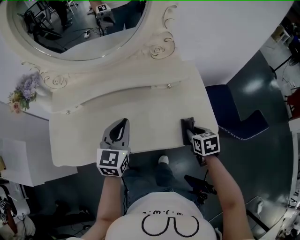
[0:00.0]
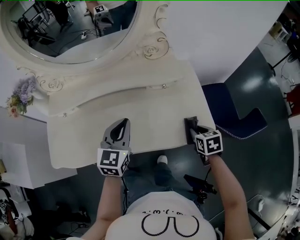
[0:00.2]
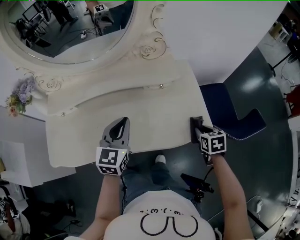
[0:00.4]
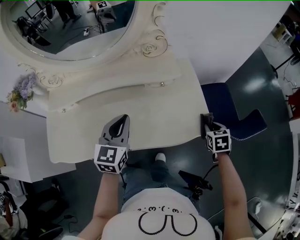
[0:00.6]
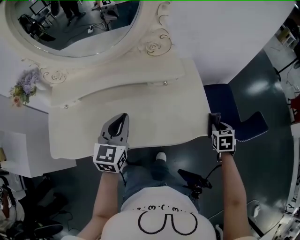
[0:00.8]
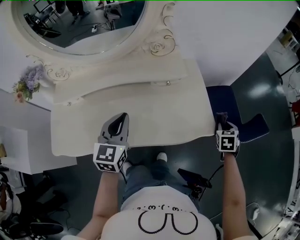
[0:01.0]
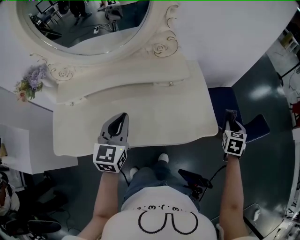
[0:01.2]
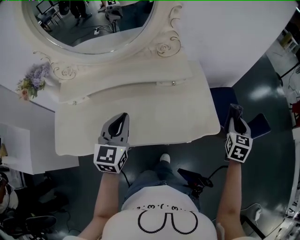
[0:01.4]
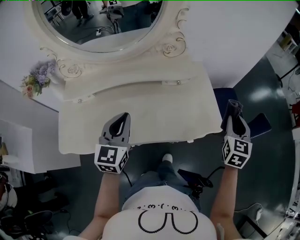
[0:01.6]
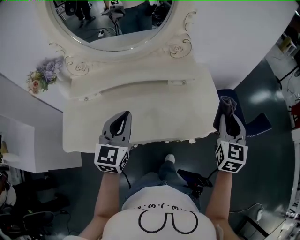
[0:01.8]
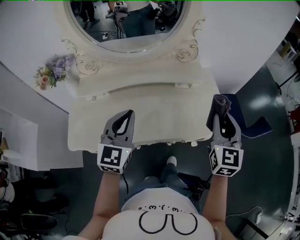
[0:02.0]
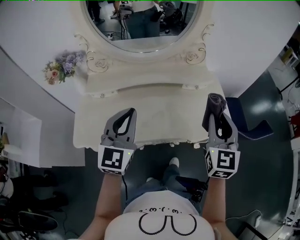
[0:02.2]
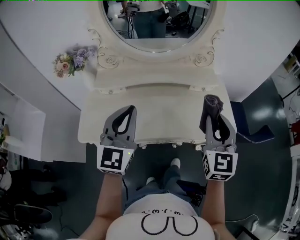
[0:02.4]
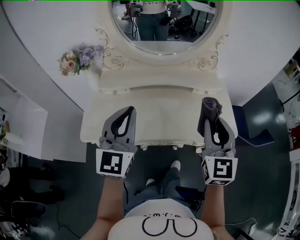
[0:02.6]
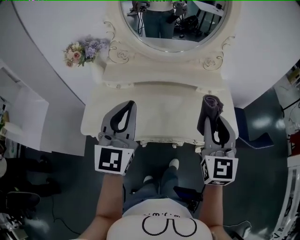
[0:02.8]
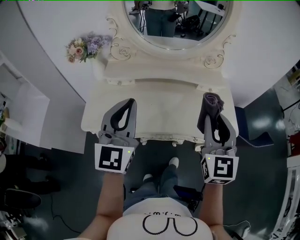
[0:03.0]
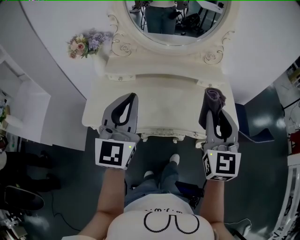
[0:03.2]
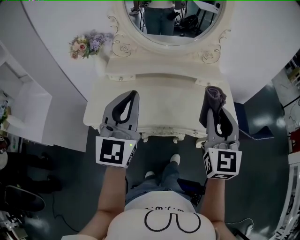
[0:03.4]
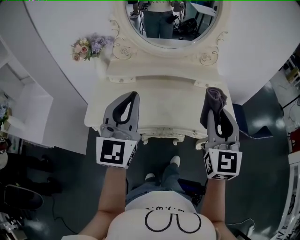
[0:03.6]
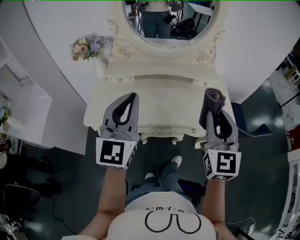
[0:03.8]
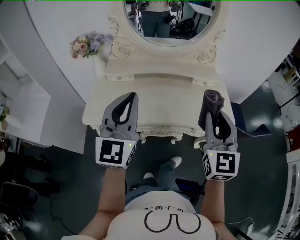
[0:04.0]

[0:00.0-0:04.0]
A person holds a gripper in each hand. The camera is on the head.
0:00.0 to 0:01.4: The right gripper heads to the right and upward, covering roughly 20 cm, and turns by some 40 degrees.
0:01.4 to 0:02.6: The left gripper moves to the left, upward and backward, approximately 25 cm. The right gripper moves to the left, upward and backward, approximately 40 cm, and changes its angle by about 40 degrees.
0:02.6 to 0:04.0: The two grippers go about 10 cm backward.

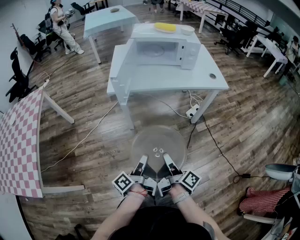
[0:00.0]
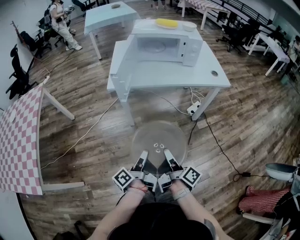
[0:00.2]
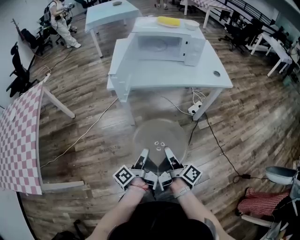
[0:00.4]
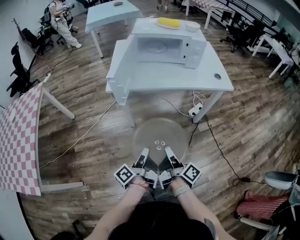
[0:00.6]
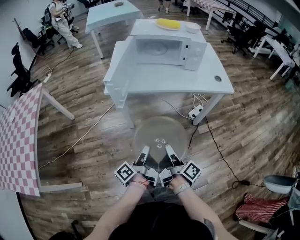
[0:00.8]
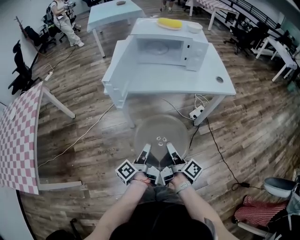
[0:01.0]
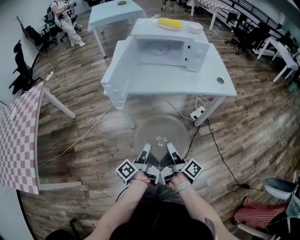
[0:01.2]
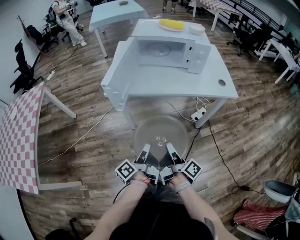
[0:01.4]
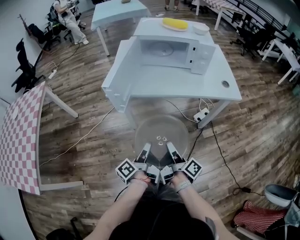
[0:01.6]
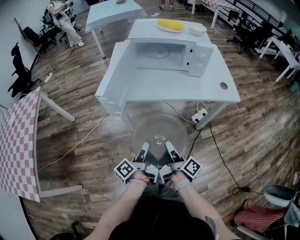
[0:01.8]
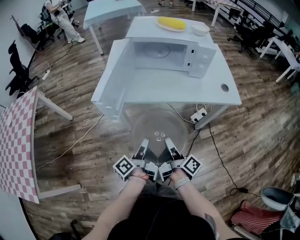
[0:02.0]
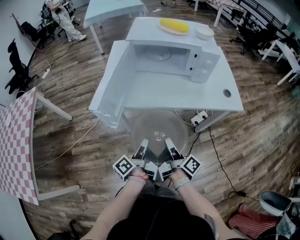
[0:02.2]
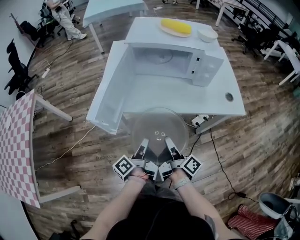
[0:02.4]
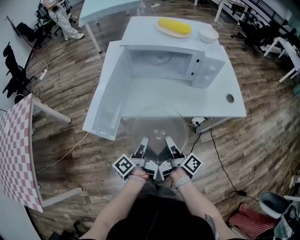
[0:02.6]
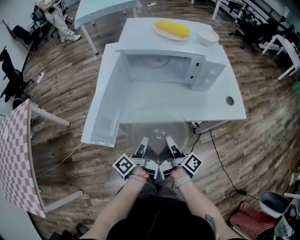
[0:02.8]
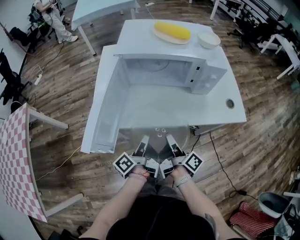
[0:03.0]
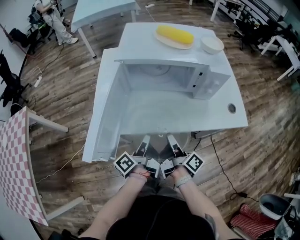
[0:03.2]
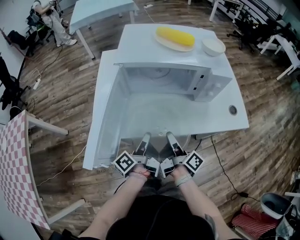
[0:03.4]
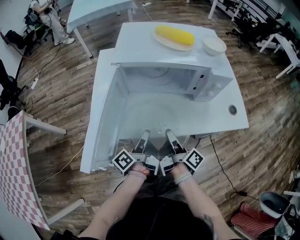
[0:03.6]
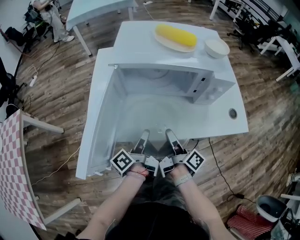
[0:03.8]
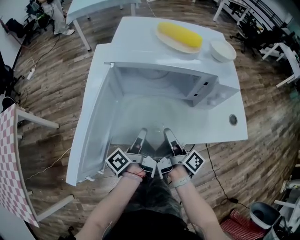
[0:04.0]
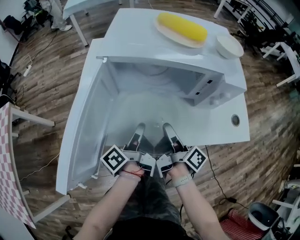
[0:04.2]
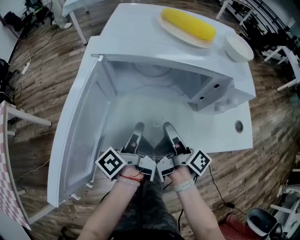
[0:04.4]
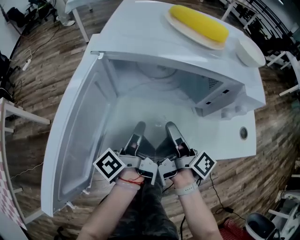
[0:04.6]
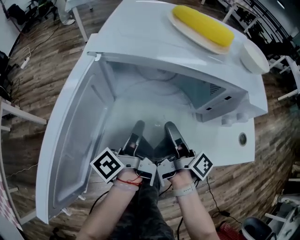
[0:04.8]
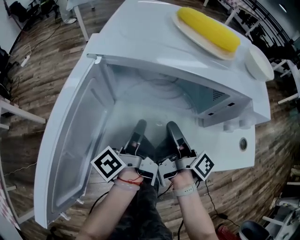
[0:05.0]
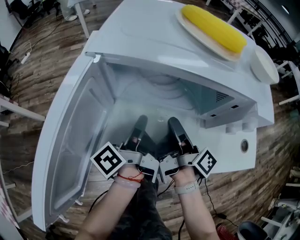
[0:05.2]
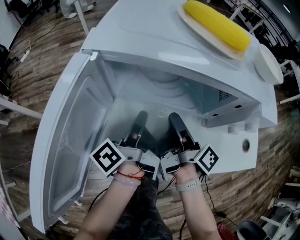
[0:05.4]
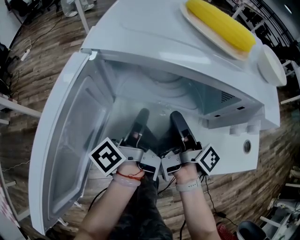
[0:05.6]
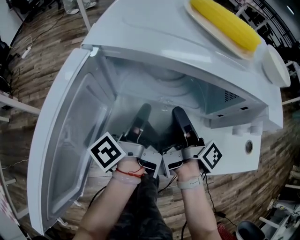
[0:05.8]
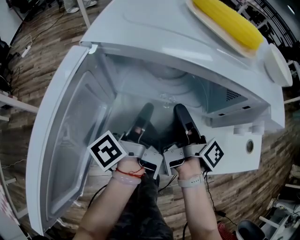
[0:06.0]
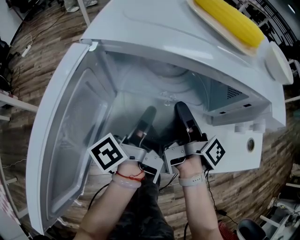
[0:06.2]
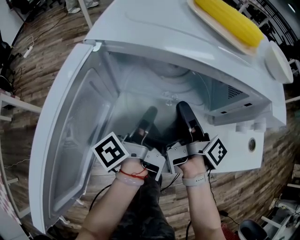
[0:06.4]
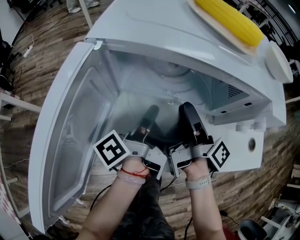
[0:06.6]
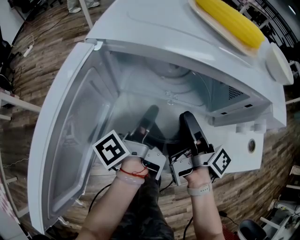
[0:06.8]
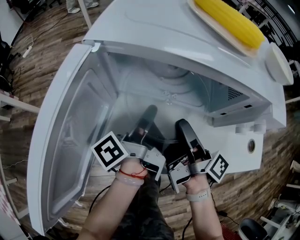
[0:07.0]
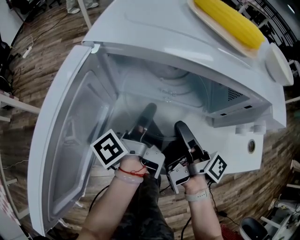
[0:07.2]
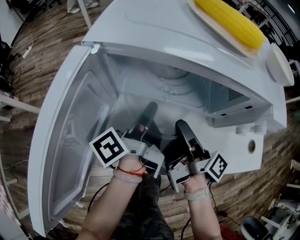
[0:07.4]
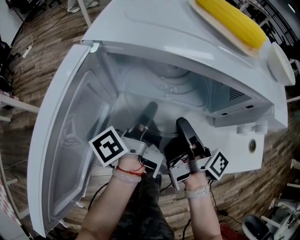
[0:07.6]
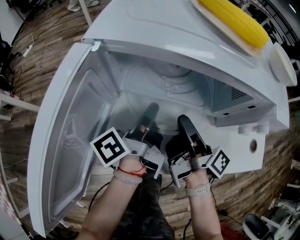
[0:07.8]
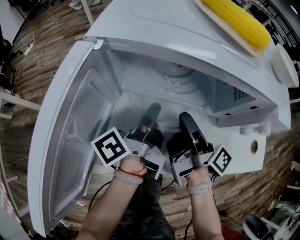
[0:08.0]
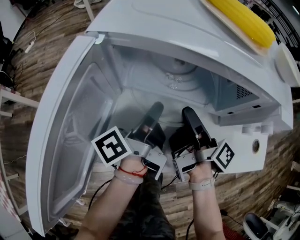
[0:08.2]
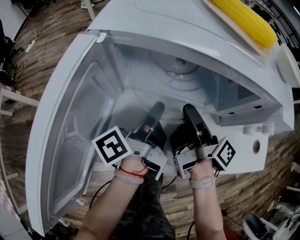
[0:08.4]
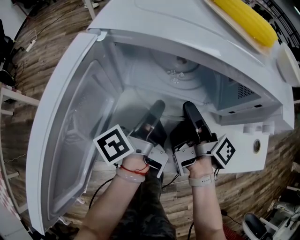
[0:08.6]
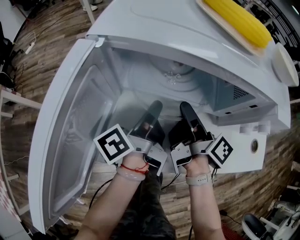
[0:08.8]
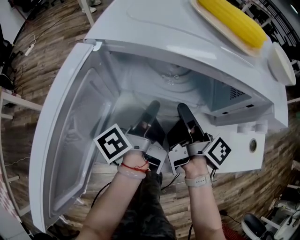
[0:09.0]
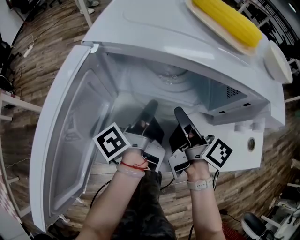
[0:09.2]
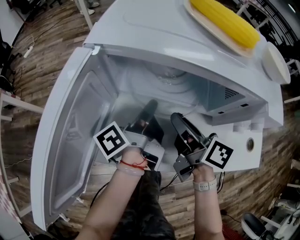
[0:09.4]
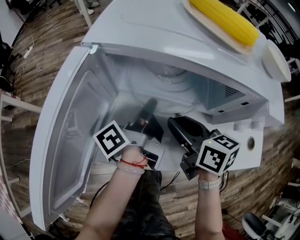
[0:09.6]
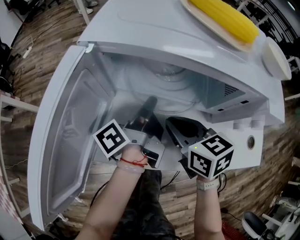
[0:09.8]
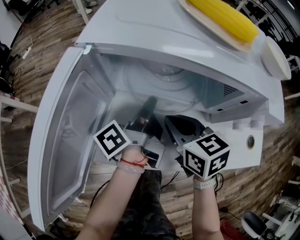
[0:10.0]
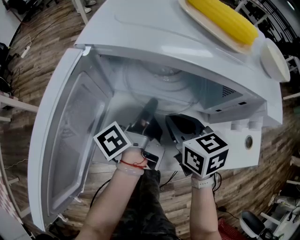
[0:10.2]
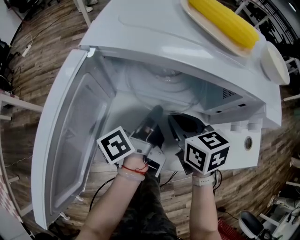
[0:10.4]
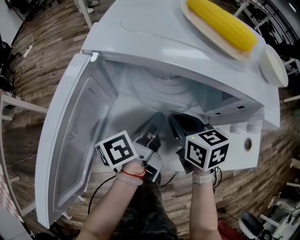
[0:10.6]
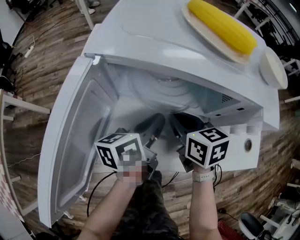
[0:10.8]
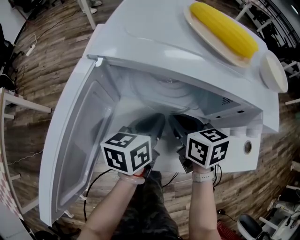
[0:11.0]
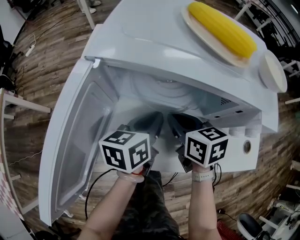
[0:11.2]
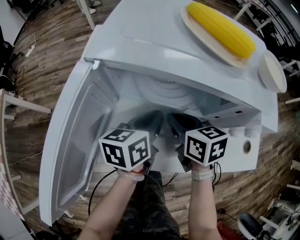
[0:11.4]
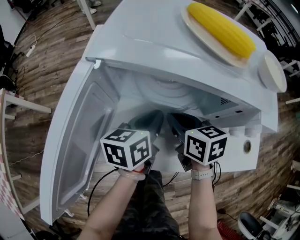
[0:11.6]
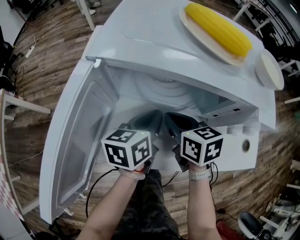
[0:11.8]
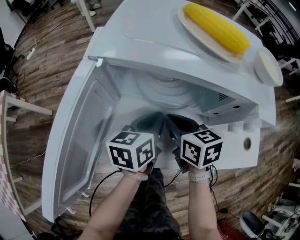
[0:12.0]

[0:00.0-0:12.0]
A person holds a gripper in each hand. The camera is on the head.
0:00.0 to 0:01.6: The right gripper moves roughly 15 cm.
0:01.6 to 0:03.0: The right gripper ends up approximately 25 cm from where it was.
0:03.0 to 0:04.4: The right gripper ends up about 15 cm from where it was.
0:04.4 to 0:06.0: The right gripper shifts by roughly 10 cm.
0:09.0 to 0:10.4: The right gripper rolls counterclockwise, seen from behind, by about 60 degrees.

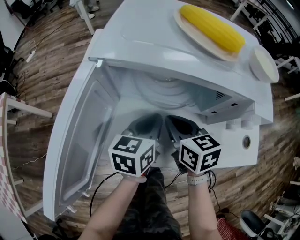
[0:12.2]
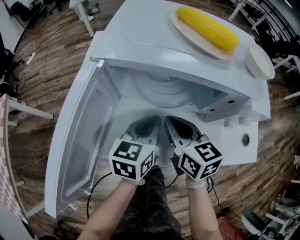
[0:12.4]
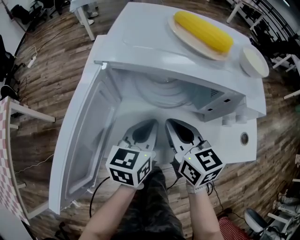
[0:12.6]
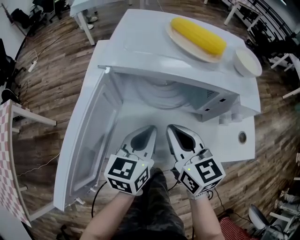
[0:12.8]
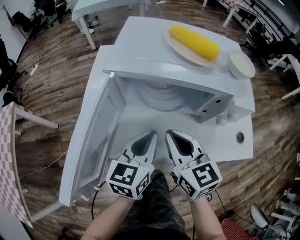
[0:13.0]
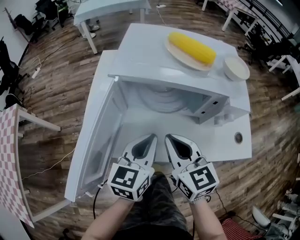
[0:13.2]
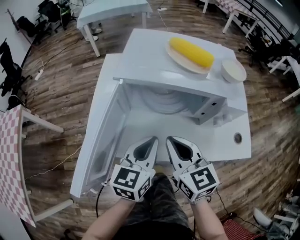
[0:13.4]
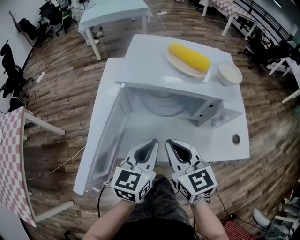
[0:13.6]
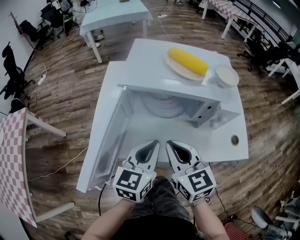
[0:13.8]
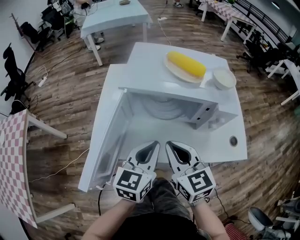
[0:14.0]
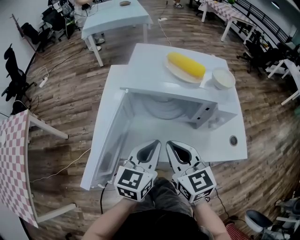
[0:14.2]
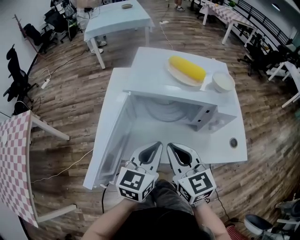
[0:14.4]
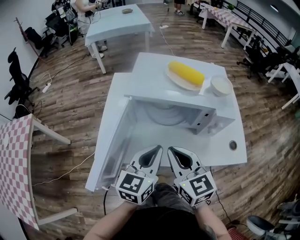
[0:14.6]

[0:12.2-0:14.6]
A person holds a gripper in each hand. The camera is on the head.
0:12.2 to 0:13.4: The right gripper shifts some 15 cm upward.
0:13.4 to 0:14.6: The right gripper moves about 5 cm.

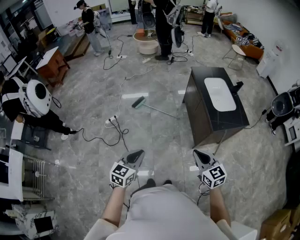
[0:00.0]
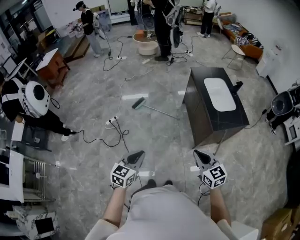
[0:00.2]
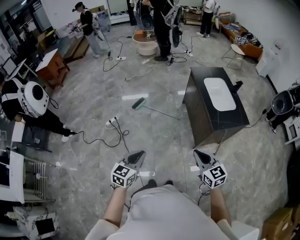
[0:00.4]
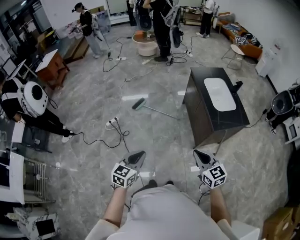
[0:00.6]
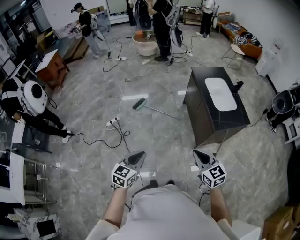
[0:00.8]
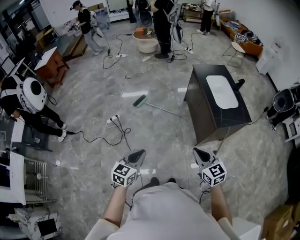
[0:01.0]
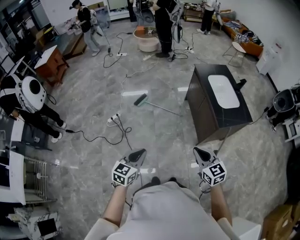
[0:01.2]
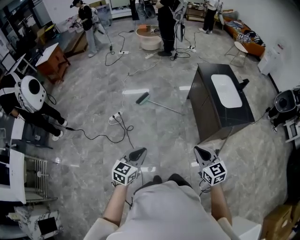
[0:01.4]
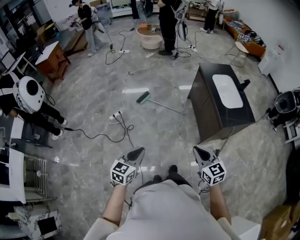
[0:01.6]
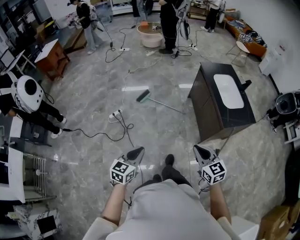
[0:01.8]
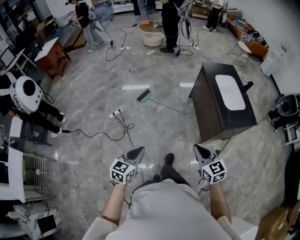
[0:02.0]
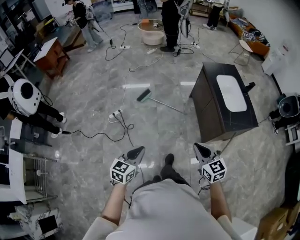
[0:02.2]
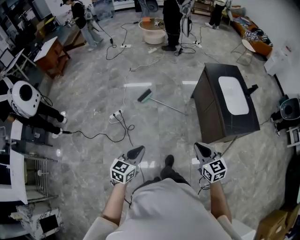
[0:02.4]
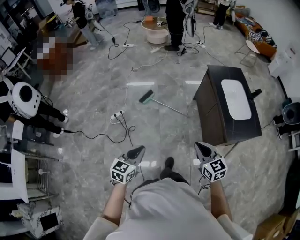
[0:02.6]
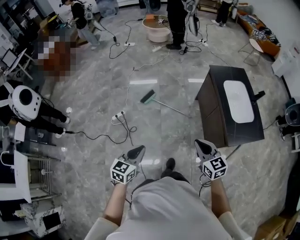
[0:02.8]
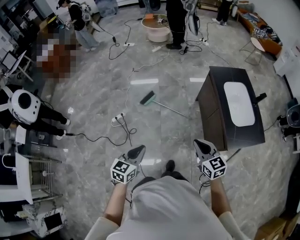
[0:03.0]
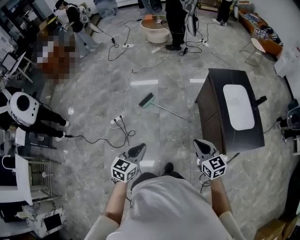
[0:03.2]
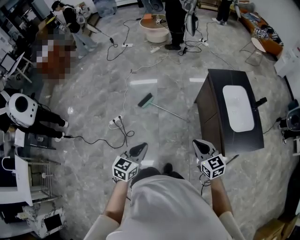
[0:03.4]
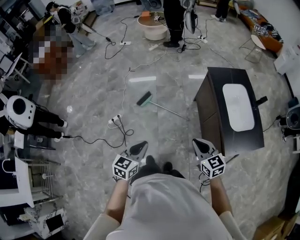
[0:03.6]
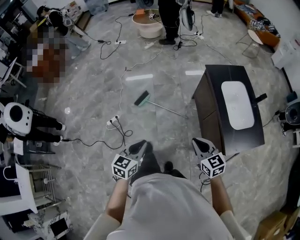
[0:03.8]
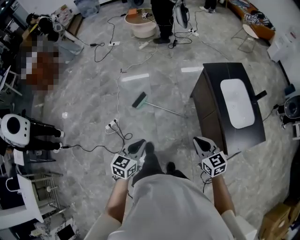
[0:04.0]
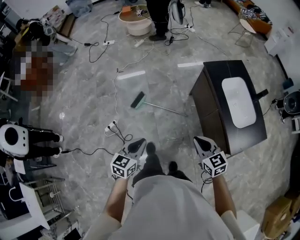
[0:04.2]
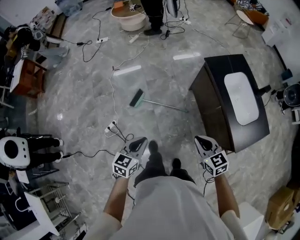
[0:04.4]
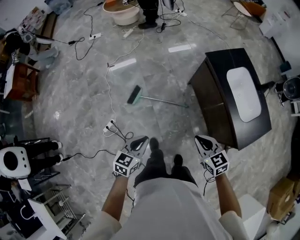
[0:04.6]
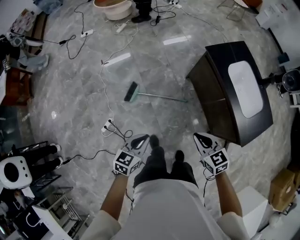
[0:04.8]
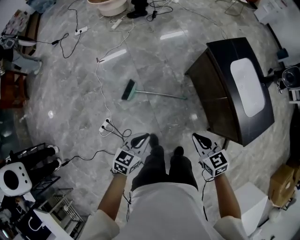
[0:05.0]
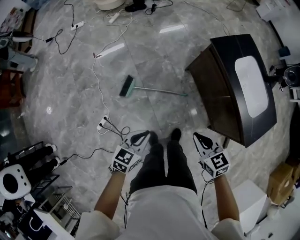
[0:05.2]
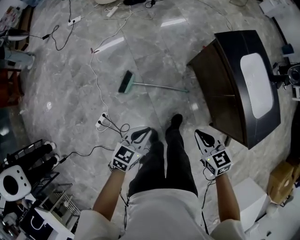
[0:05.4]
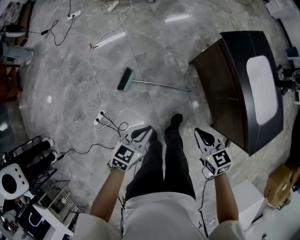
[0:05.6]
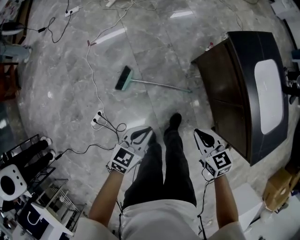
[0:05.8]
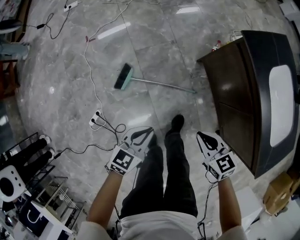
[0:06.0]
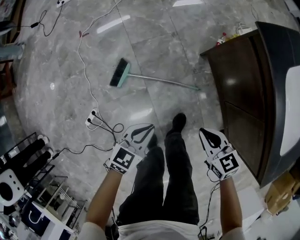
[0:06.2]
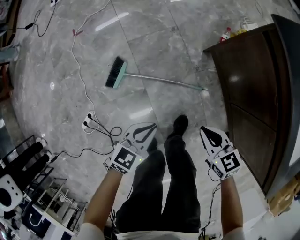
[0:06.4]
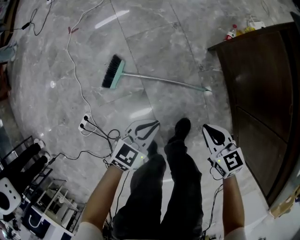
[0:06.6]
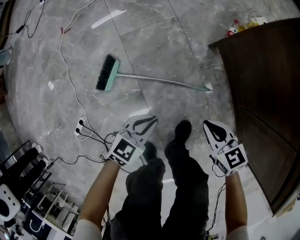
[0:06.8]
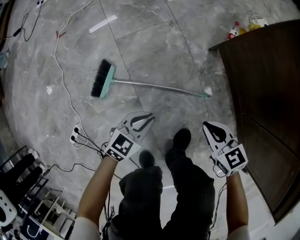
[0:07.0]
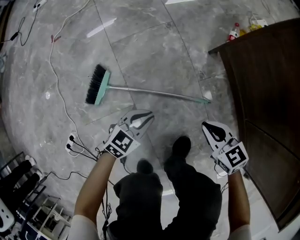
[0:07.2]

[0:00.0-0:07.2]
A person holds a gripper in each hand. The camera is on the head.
0:00.0 to 0:01.4: The grippers both shift to the left by some 10 cm.
0:01.4 to 0:02.8: Both grippers travel together forward, roughly 20 cm.
0:02.8 to 0:04.4: Both grippers move forward, approximately 30 cm.
0:04.4 to 0:05.8: The grippers both shift downward and forward by some 35 cm.
0:05.8 to 0:07.2: Both grippers travel together downward, some 50 cm.
